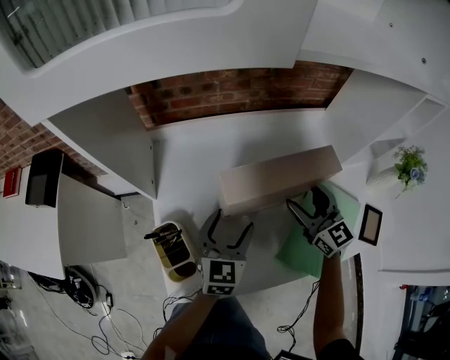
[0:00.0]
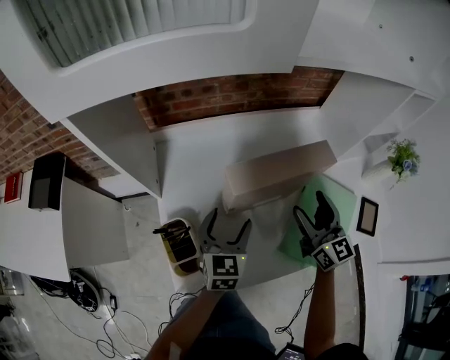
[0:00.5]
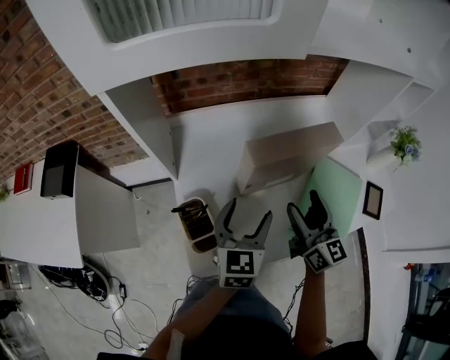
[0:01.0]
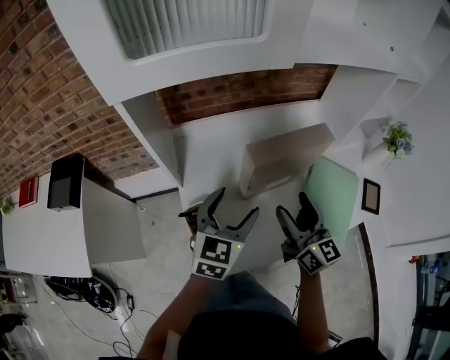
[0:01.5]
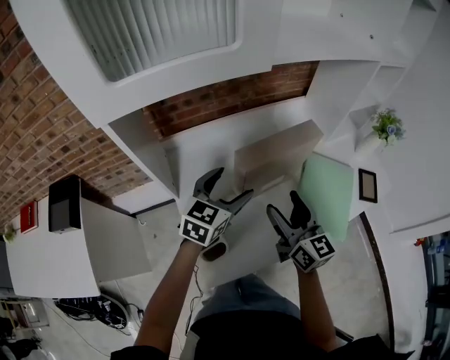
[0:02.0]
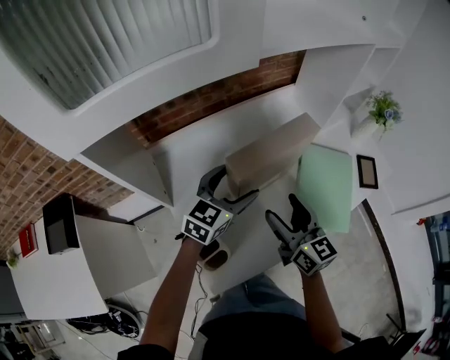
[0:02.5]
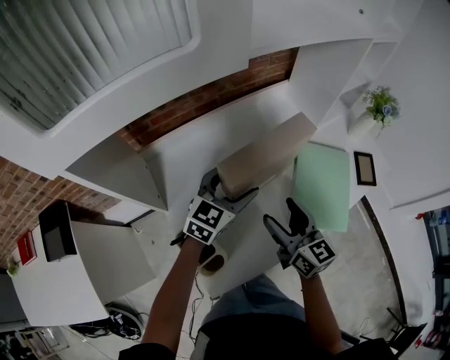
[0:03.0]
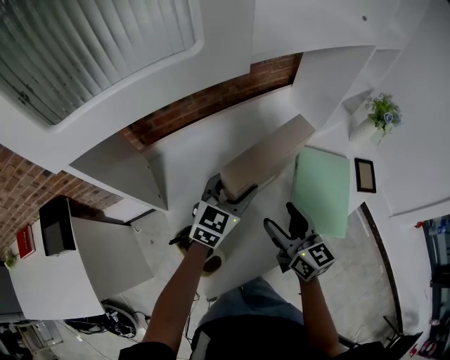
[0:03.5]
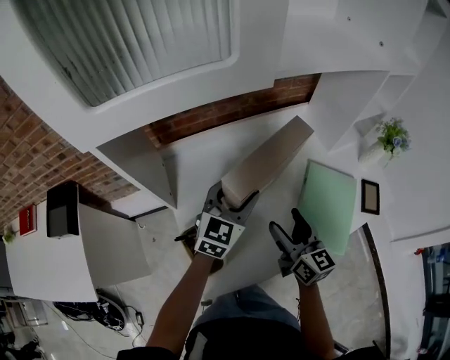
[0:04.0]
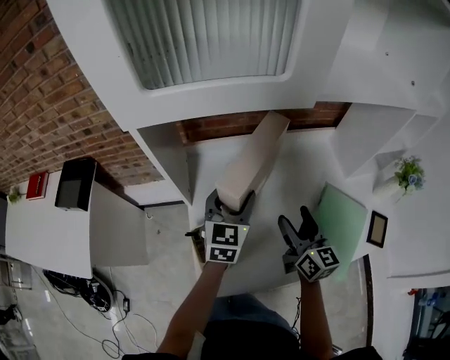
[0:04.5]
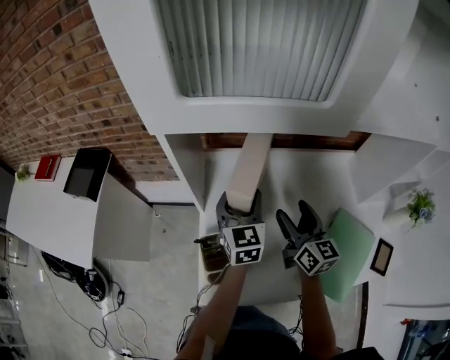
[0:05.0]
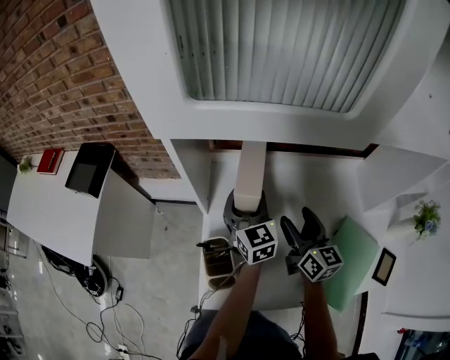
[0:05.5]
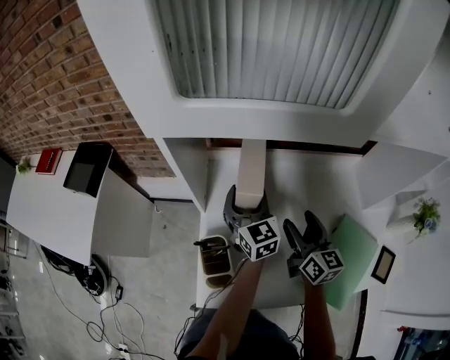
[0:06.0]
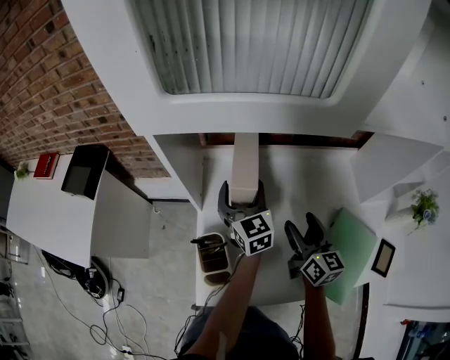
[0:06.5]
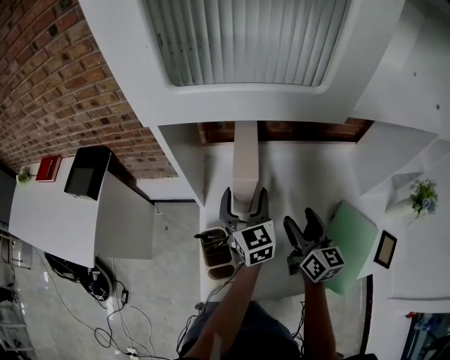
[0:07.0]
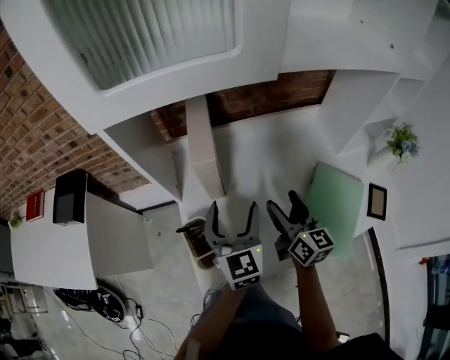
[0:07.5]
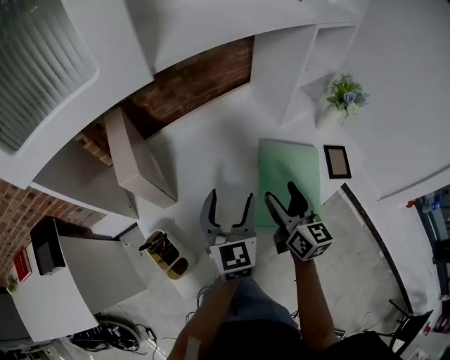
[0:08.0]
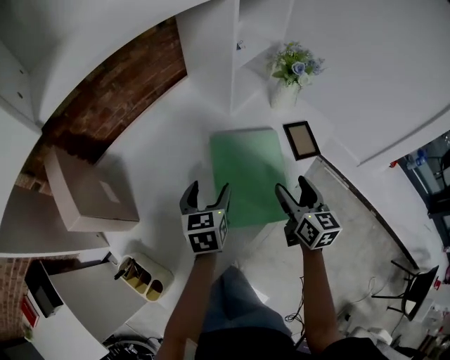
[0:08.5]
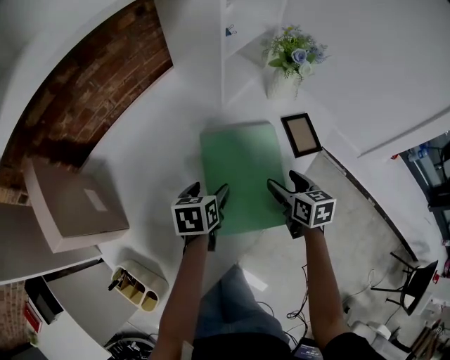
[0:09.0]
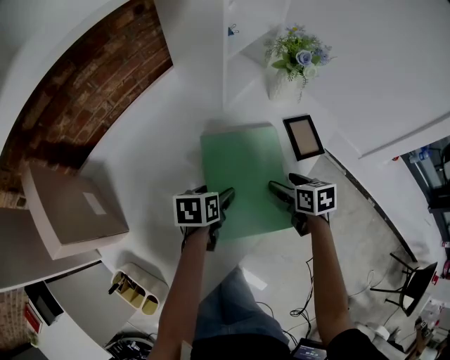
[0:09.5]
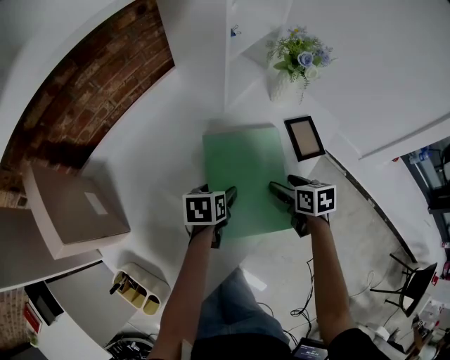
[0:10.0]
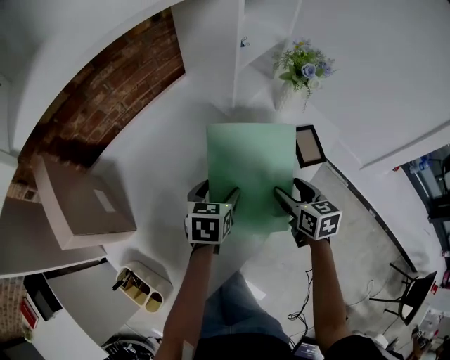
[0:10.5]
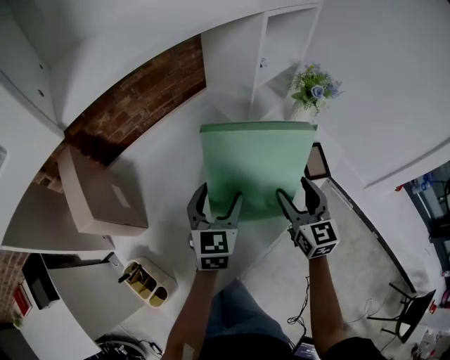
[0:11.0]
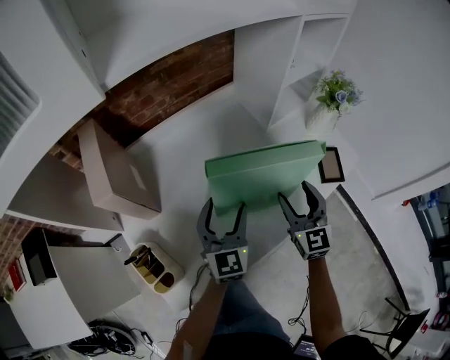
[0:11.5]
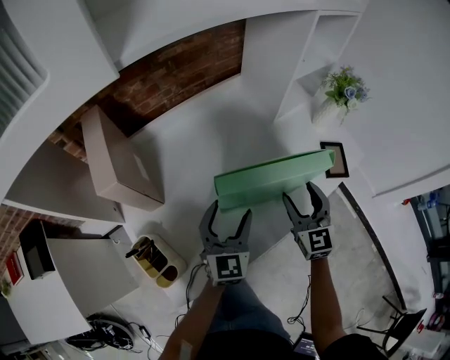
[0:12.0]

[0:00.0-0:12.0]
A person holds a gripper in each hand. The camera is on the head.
0:00.0 to 0:02.0: The left gripper goes some 10 cm upward, and changes its angle by roughly 30 degrees; the right gripper moves backward, to the left and upward, approximately 20 cm, and rotates approximately 30 degrees.
0:04.0 to 0:06.0: The left gripper shifts by roughly 15 cm, and turns by about 60 degrees; the right gripper moves about 15 cm.
0:06.0 to 0:08.0: The right gripper ends up about 25 cm from where it was, and turns by some 30 degrees, while the left gripper moves about 30 cm, and swivels roughly 40 degrees.
0:08.0 to 0:10.0: The two grippers go approximately 30 cm downward, to the right and forward. The right gripper angles its fingers downward, by some 40 degrees. The left gripper tilts its fingers about 40 degrees downward.
0:10.0 to 0:12.0: The left gripper shifts about 20 cm upward, backward and to the left, and tilts its fingers about 40 degrees upward, while the right gripper moves upward and to the left, some 20 cm, and angles its fingers upward, by approximately 40 degrees.

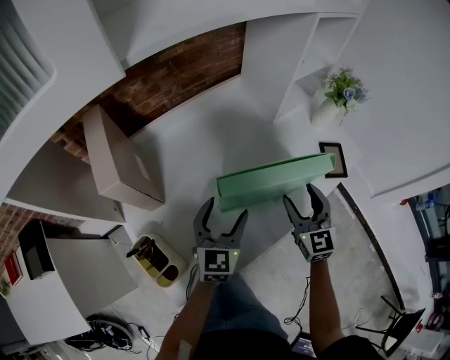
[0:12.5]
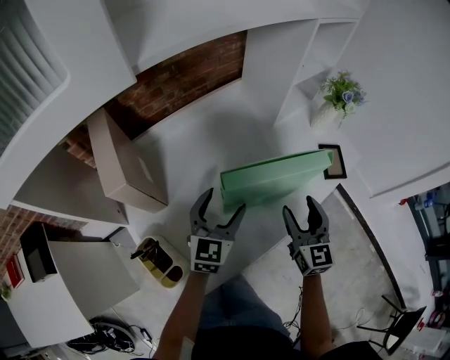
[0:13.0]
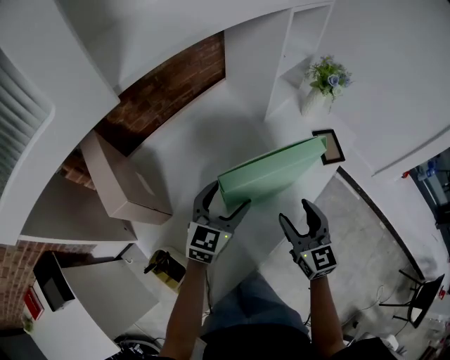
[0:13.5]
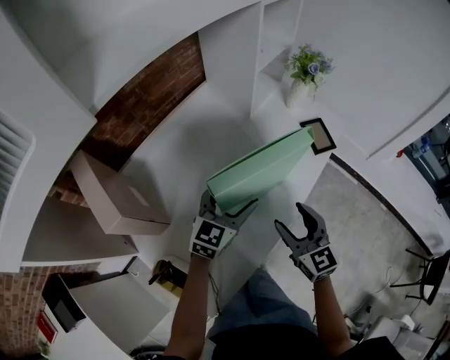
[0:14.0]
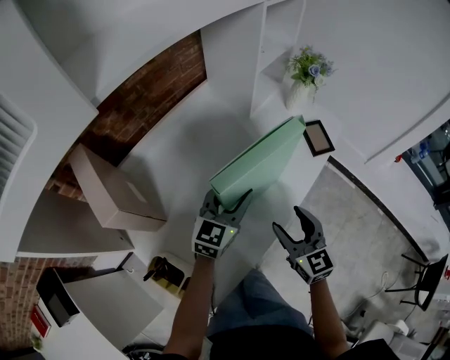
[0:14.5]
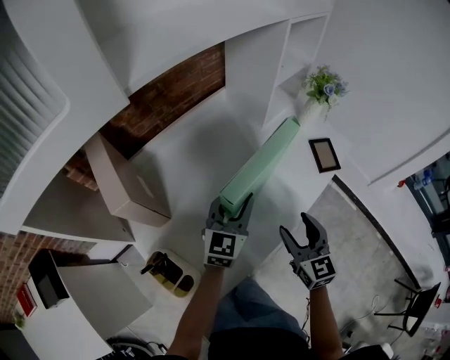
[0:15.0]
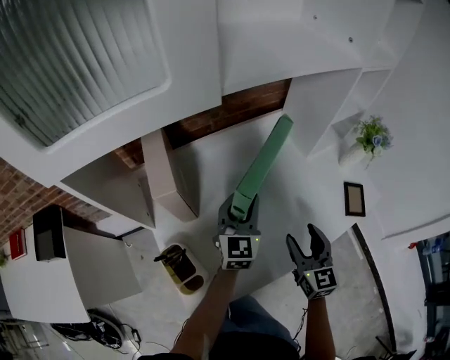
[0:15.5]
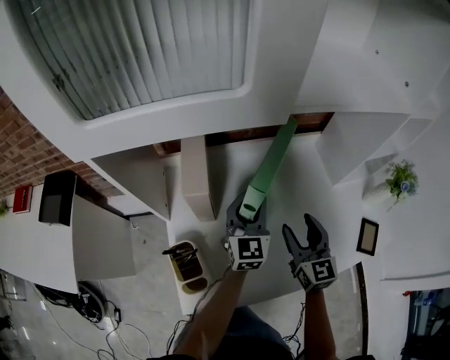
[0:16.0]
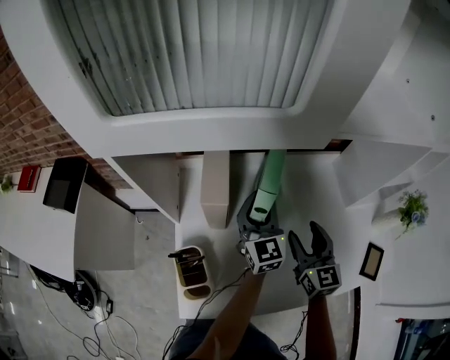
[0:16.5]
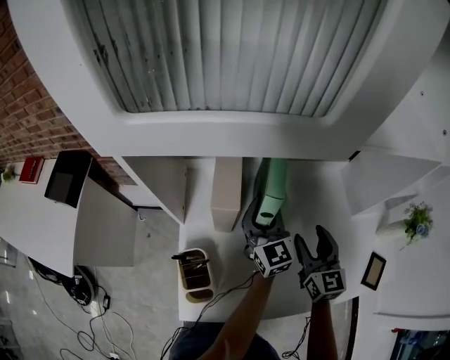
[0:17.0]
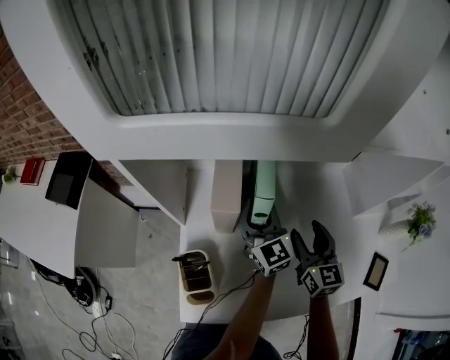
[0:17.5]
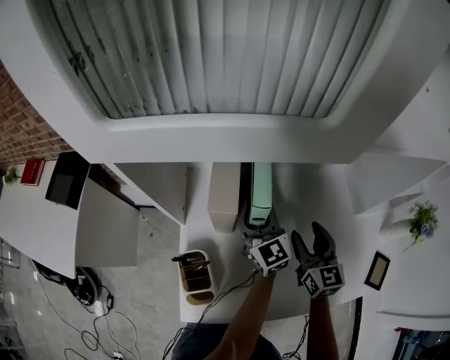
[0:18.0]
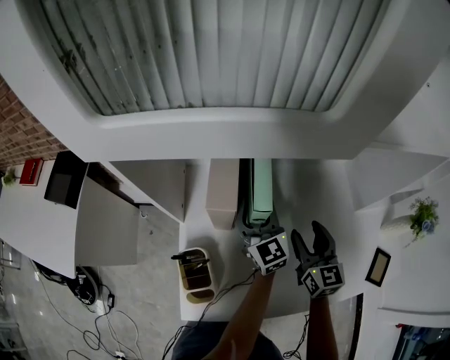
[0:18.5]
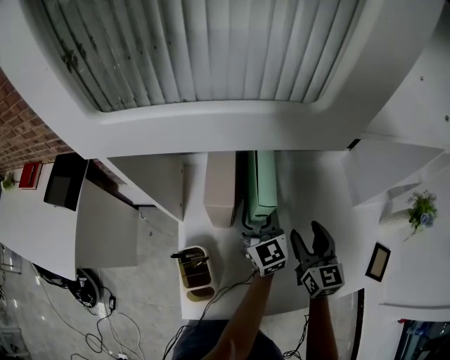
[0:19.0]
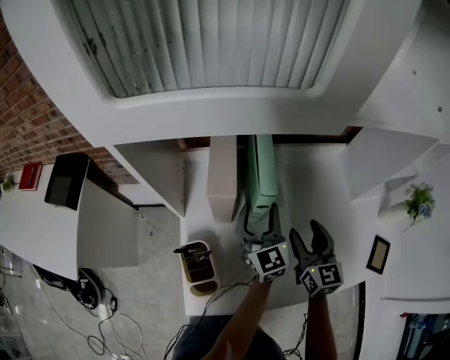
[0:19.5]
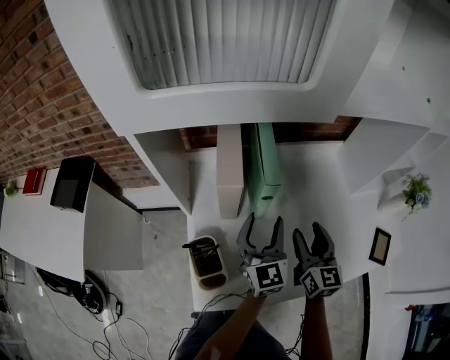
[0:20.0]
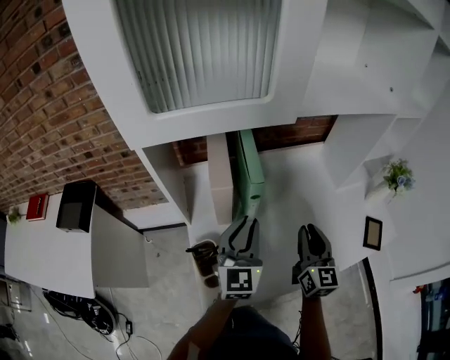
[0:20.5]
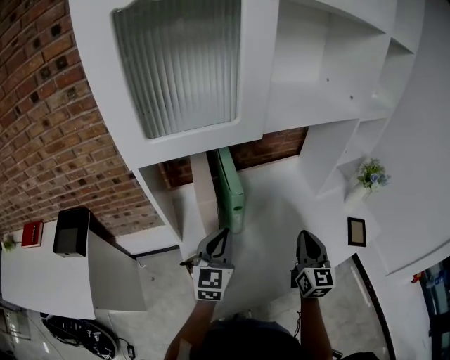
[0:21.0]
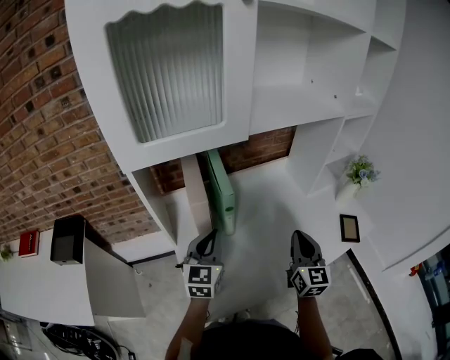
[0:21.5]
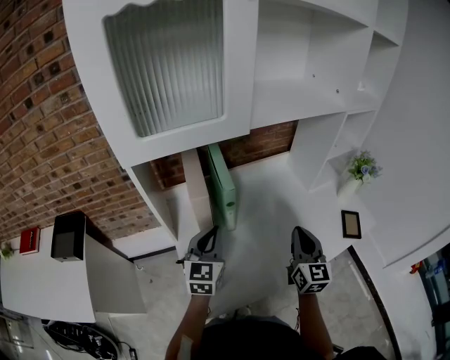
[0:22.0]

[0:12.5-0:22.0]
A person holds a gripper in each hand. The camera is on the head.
0:12.5 to 0:14.5: The right gripper travels backward by about 10 cm. Meanwhile the left gripper shifts approximately 5 cm to the right, changes its angle by approximately 30 degrees, and closes up.
0:14.5 to 0:16.5: The right gripper moves approximately 25 cm, and rotates some 30 degrees. The left gripper shifts by approximately 25 cm, and changes its angle by approximately 70 degrees.
0:16.5 to 0:18.0: The left gripper ends up approximately 5 cm from where it was.
0:18.0 to 0:20.0: The right gripper is displaced backward by about 5 cm, while the left gripper goes about 10 cm backward.
0:20.0 to 0:22.0: The right gripper shifts some 15 cm upward, backward and to the right, and closes its fingers, while the left gripper goes roughly 10 cm upward, backward and to the left, swivels some 20 degrees, and closes up.

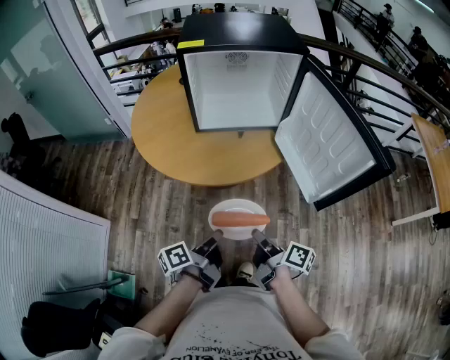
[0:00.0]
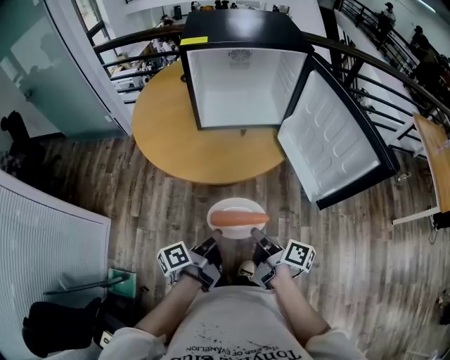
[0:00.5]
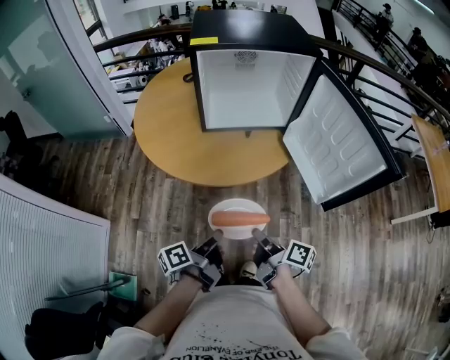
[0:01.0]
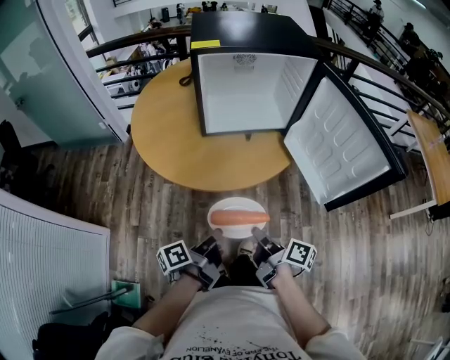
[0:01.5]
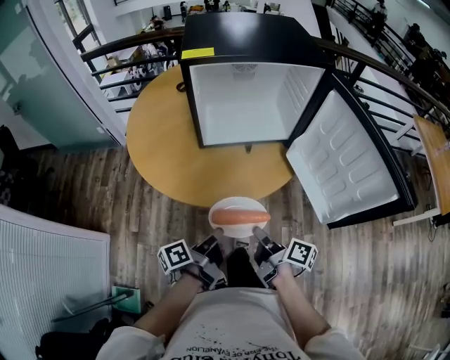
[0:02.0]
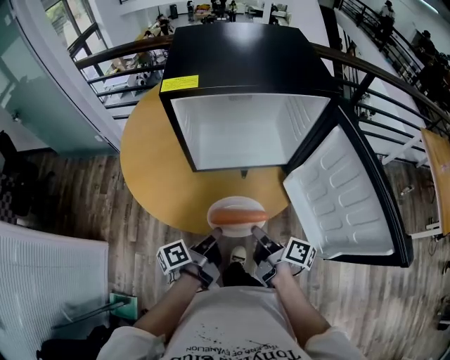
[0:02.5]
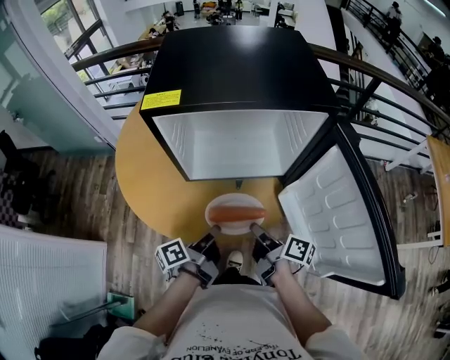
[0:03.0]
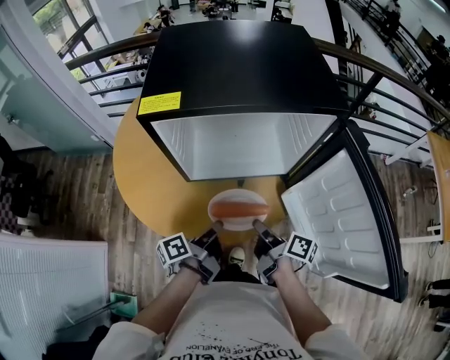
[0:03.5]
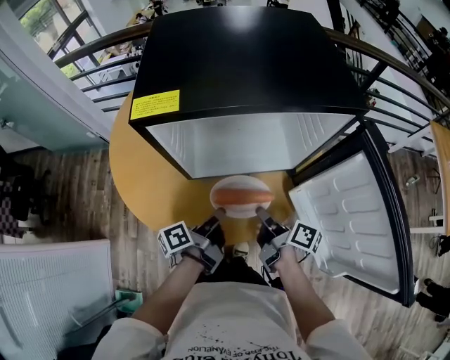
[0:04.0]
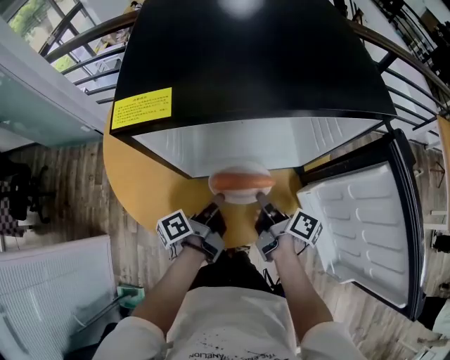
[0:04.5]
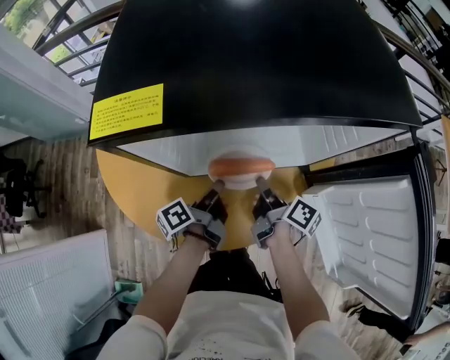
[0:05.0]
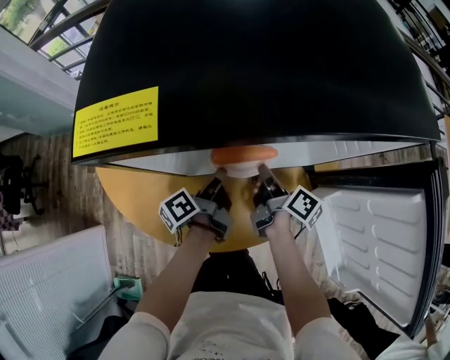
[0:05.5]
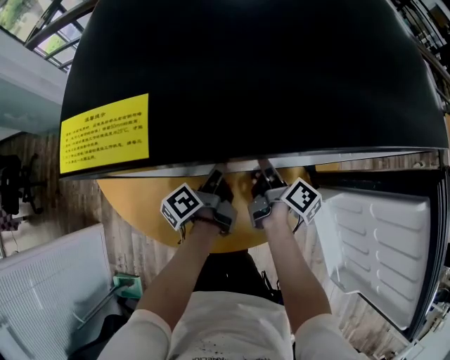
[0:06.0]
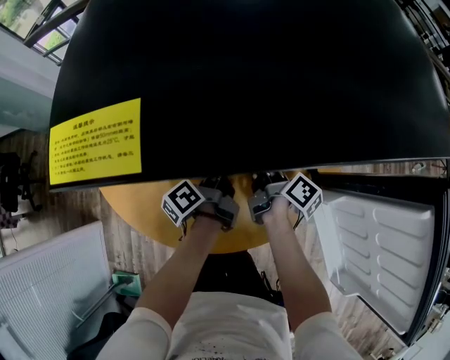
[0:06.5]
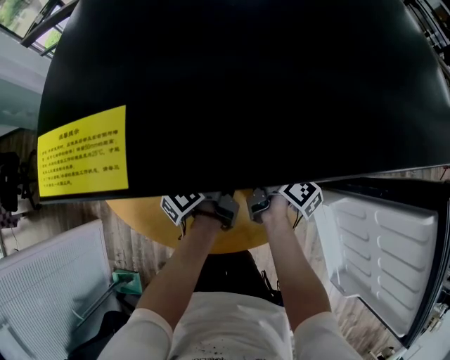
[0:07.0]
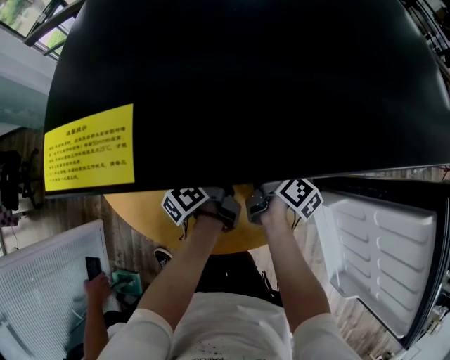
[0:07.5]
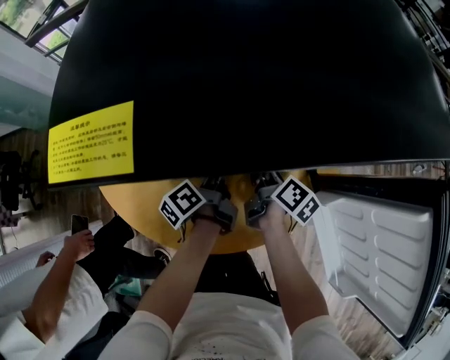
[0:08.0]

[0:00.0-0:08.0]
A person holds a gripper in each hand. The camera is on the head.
0:00.0 to 0:02.0: The right gripper changes place by roughly 10 cm.
0:02.0 to 0:04.0: The right gripper ends up about 25 cm from where it was.
0:04.0 to 0:06.0: The right gripper moves approximately 20 cm.
